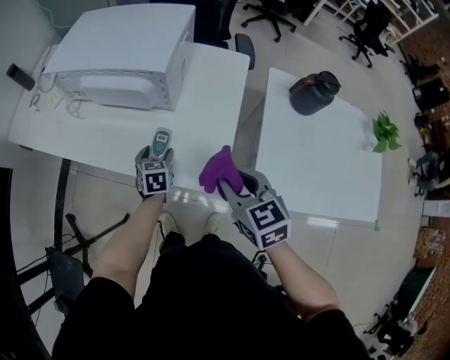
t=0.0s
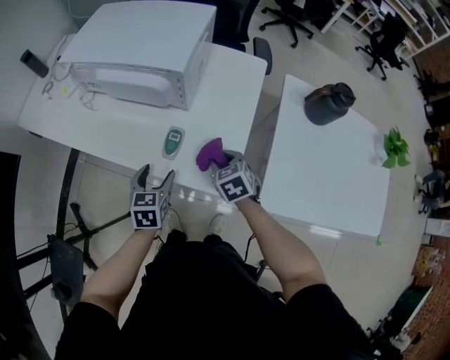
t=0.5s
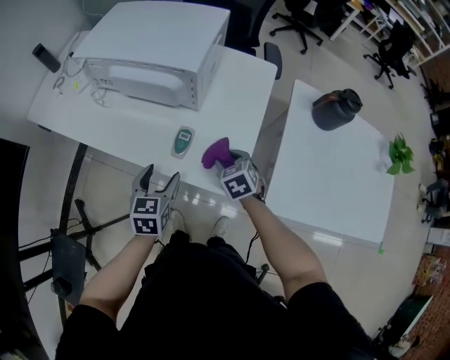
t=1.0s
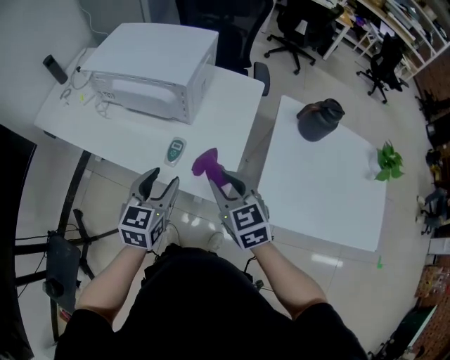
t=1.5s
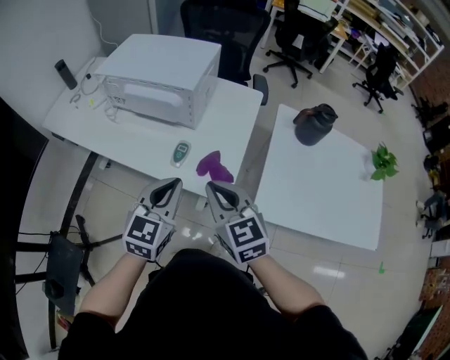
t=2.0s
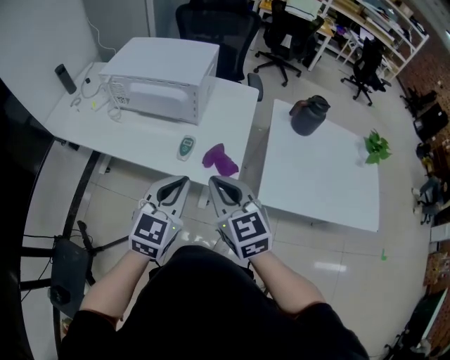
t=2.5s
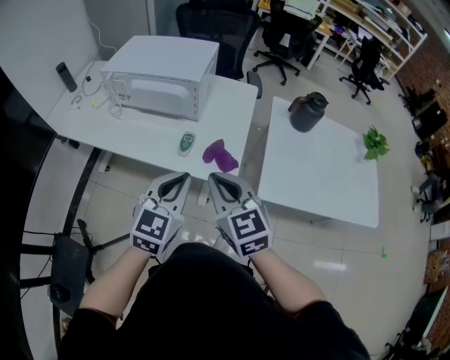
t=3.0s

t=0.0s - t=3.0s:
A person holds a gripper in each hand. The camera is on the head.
t=0.0s - t=1.5s: The left gripper heads upward and backward, covering roughly 25 cm, and swivels roughly 20 degrees. The right gripper reaches some 15 cm downward, then returns.
t=1.5s - t=3.0s: The left gripper heads backward and upward, covering about 15 cm, turns by some 20 degrees, and closes up, while the right gripper shifts some 15 cm backward, upward and to the left, and closes its fingers.

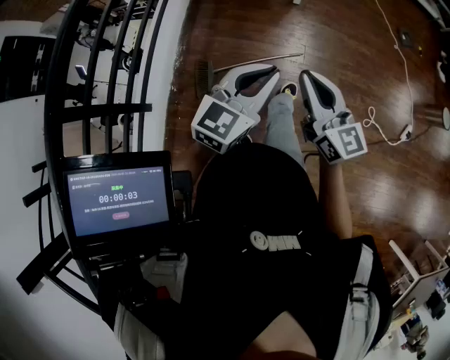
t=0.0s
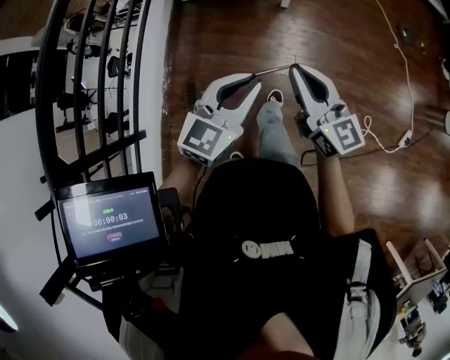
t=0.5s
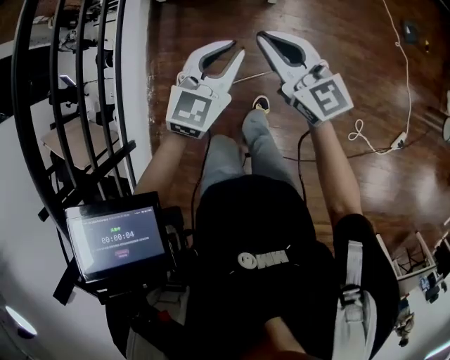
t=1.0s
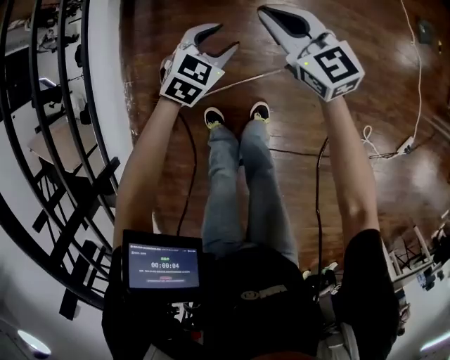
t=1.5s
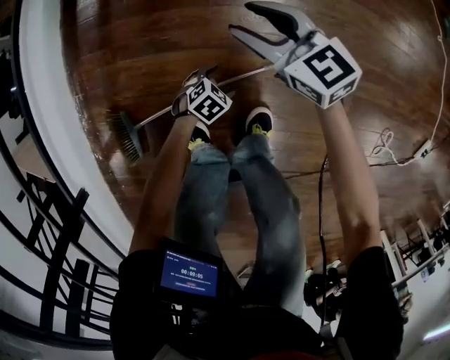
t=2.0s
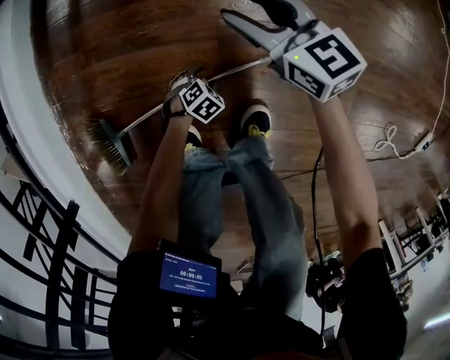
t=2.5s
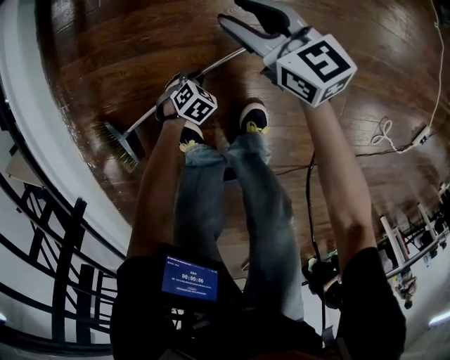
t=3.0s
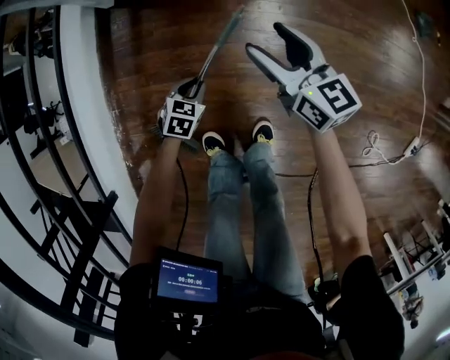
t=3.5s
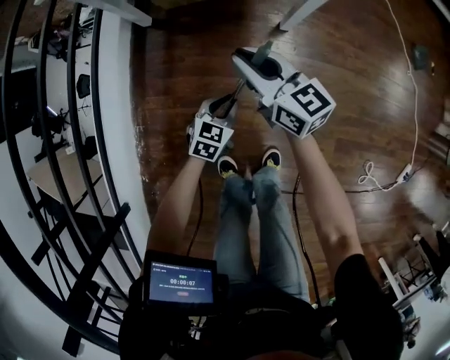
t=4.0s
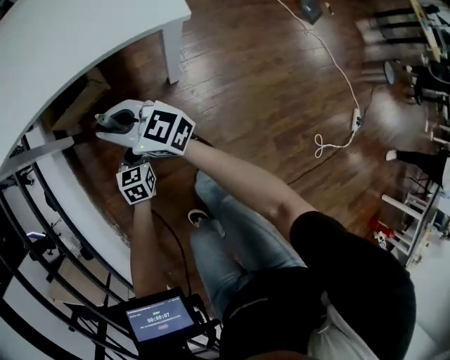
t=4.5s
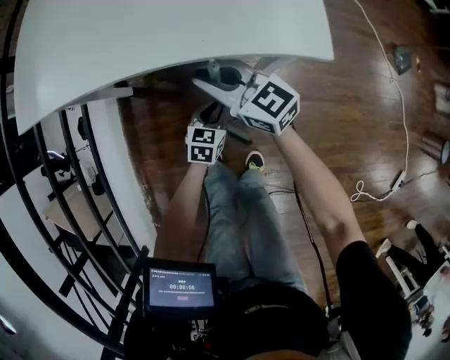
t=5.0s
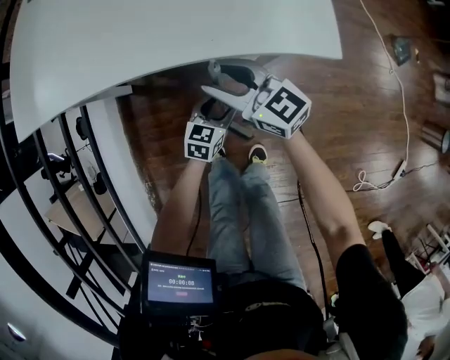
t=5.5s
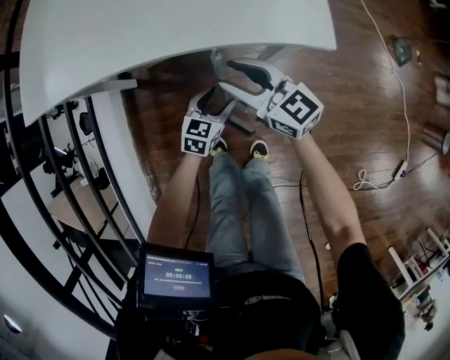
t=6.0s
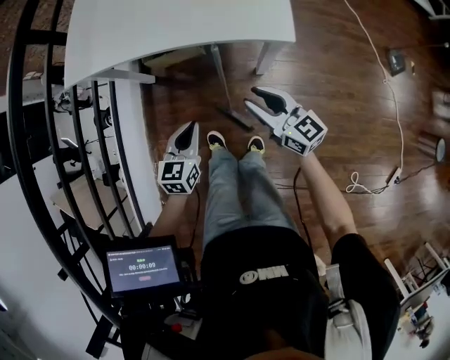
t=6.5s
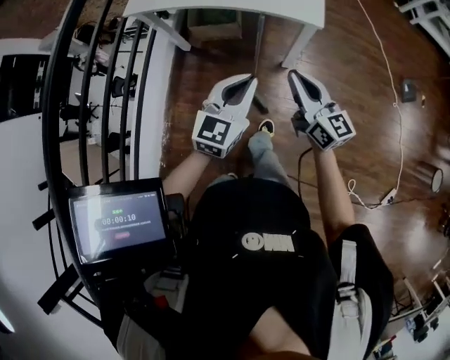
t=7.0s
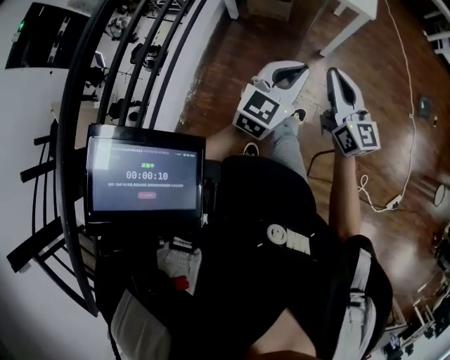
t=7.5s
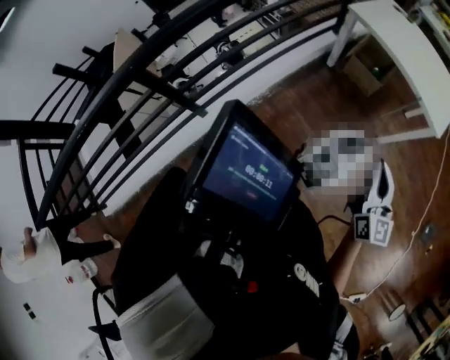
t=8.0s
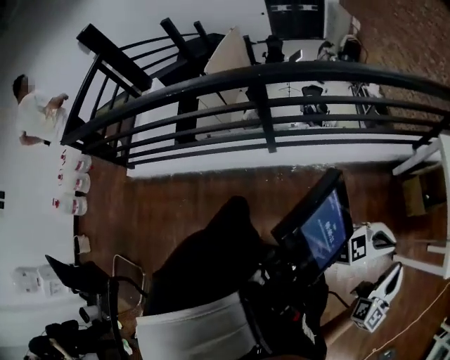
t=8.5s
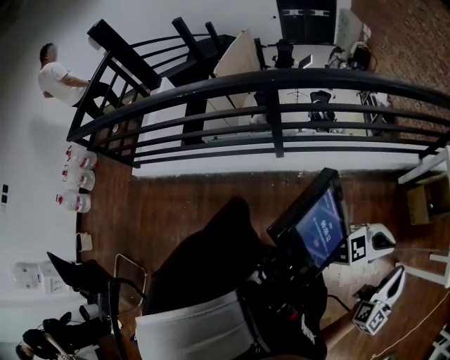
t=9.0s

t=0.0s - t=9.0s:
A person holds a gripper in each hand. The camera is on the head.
t=0.0s - t=2.0s: Both grippers move downward, approximately 70 cm. The right gripper turns by some 30 degrees, and opens its fingers; the left gripper tilts its fingers some 50 degrees downward, and opens up.
t=2.0s - t=4.5s: Both grippers travel together upward, approximately 35 cm. The left gripper rotates roughly 40 degrees, and closes up; the right gripper closes its fingers.
t=4.5s - t=7.0s: The right gripper is displaced upward, backward and to the right by roughly 30 cm, and opens, then closes once more. Meanwhile the left gripper moves upward, roughly 40 cm, rotates about 30 degrees, and opens, then closes again.
t=7.0s - t=9.0s: The grippers both shift to the left and backward by about 30 cm.

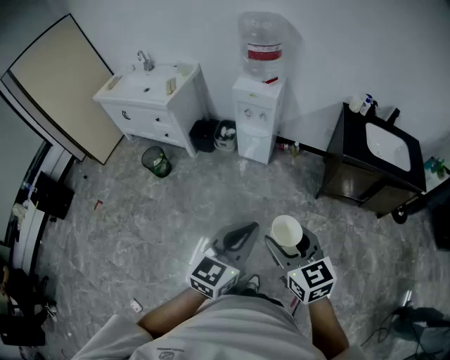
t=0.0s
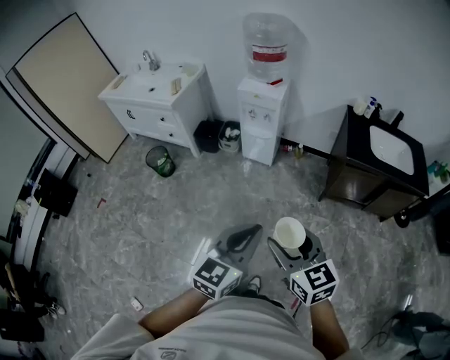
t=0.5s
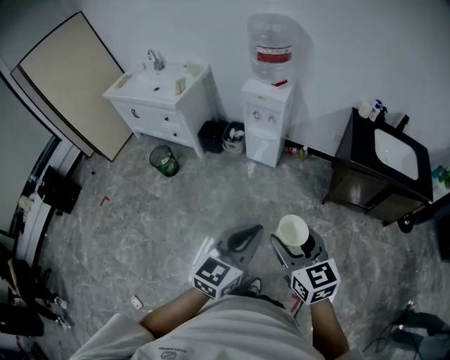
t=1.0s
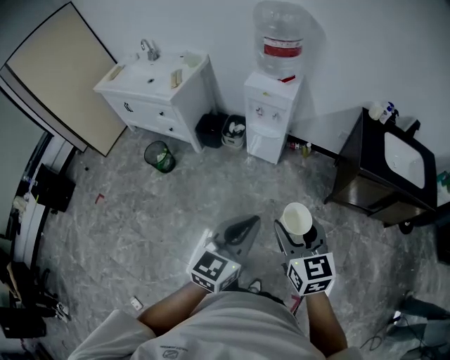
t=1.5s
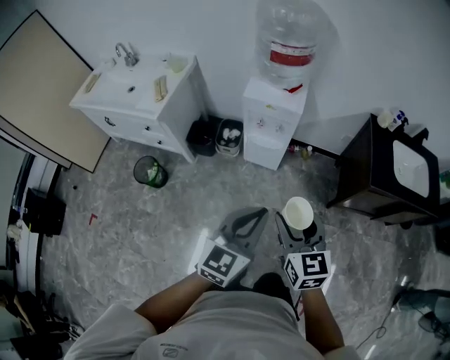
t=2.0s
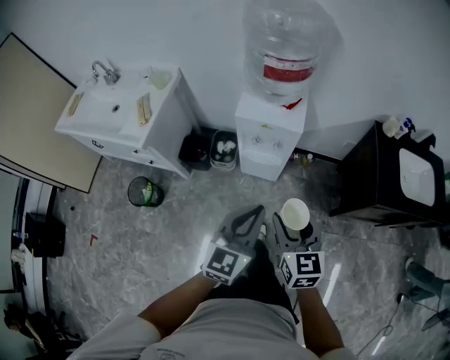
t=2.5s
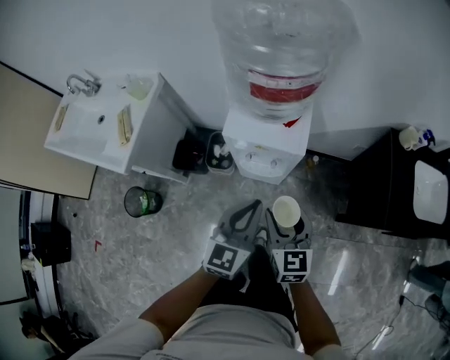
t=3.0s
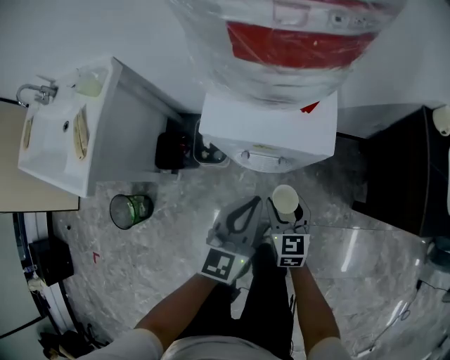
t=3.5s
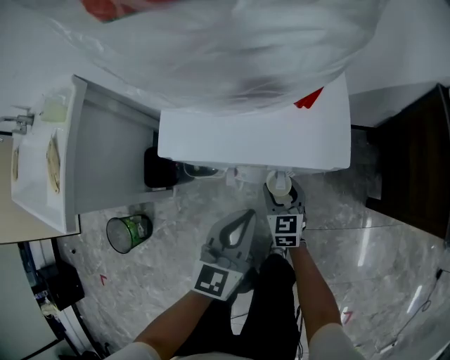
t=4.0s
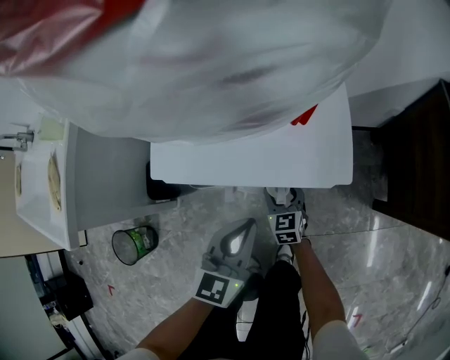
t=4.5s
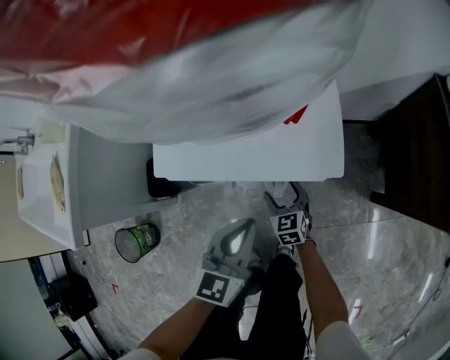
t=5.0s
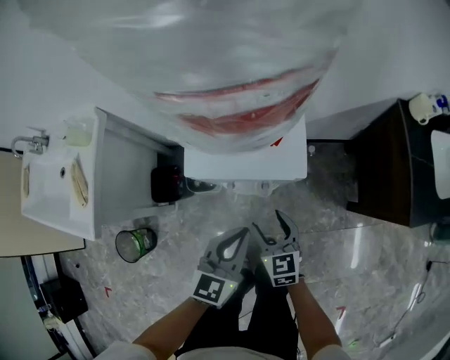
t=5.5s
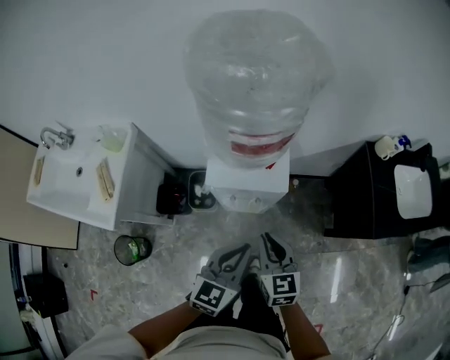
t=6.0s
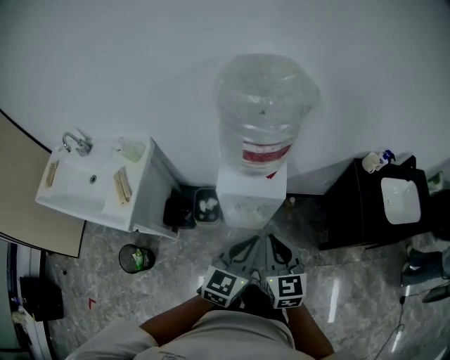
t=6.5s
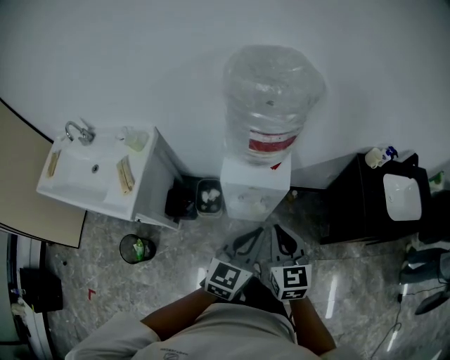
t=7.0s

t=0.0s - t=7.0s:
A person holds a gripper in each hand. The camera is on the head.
t=0.0s - t=2.0s: Both grippers travel together forward, about 30 cm.
t=2.0s - t=3.5s: The right gripper heads downward and forward, covering about 50 cm. Meanwhile the left gripper heads forward and downward, covering about 50 cm.
t=3.5s - t=5.0s: The left gripper goes about 10 cm downward. The right gripper heads downward and forward, covering roughly 20 cm.
t=5.0s - t=7.0s: The right gripper heads upward, covering some 60 cm, and closes; the left gripper travels upward by some 35 cm.

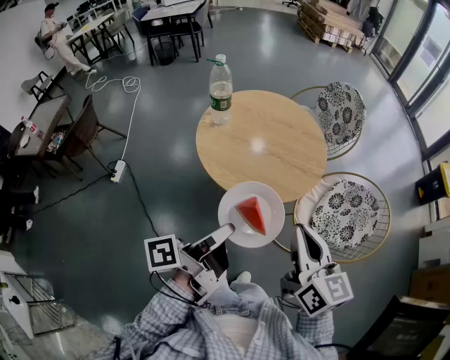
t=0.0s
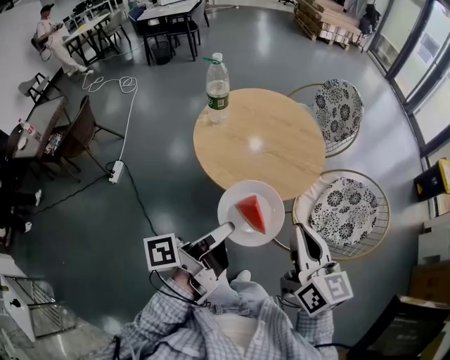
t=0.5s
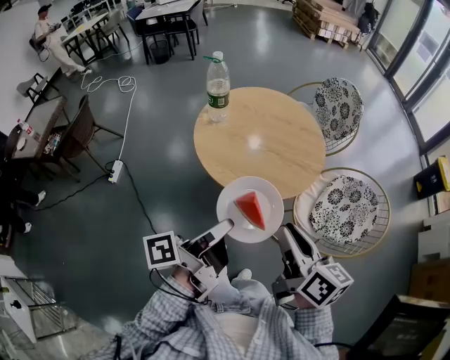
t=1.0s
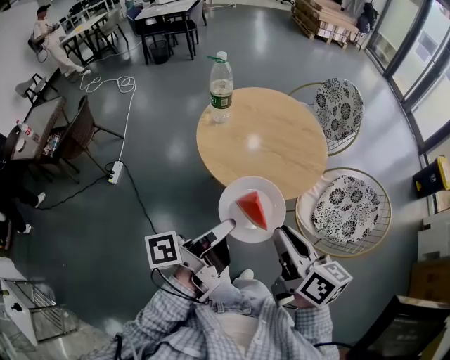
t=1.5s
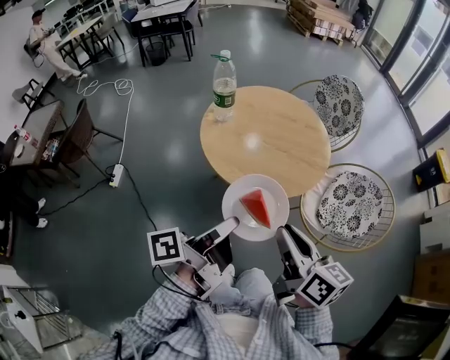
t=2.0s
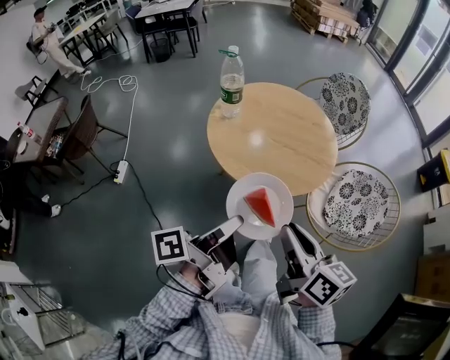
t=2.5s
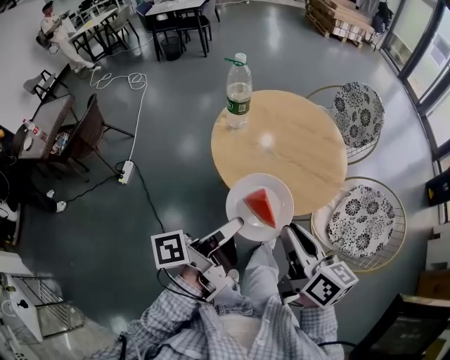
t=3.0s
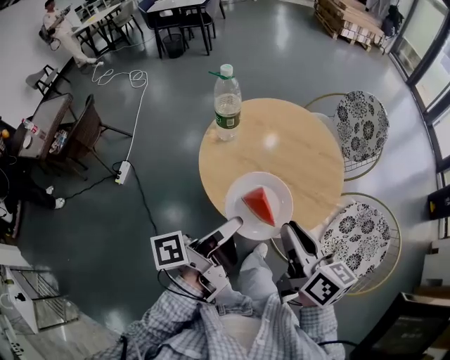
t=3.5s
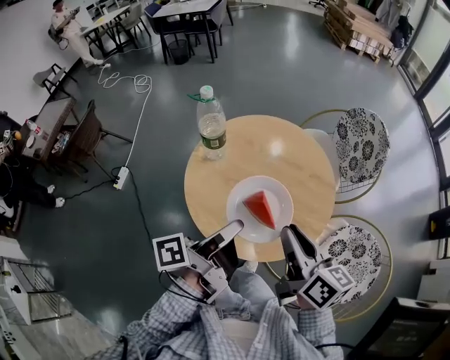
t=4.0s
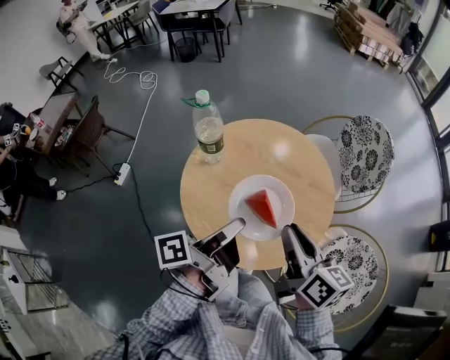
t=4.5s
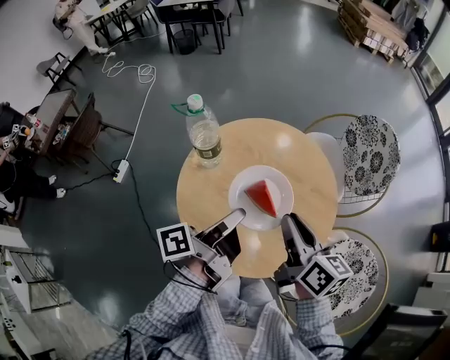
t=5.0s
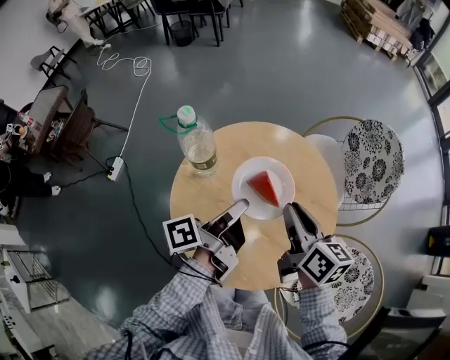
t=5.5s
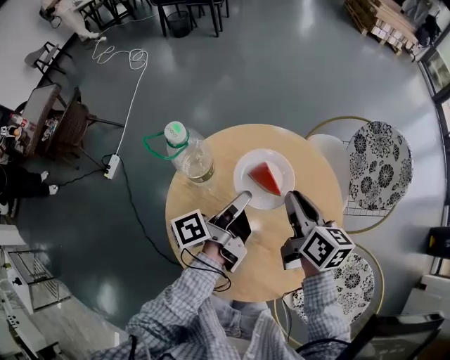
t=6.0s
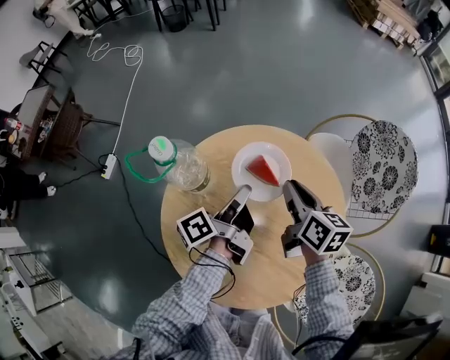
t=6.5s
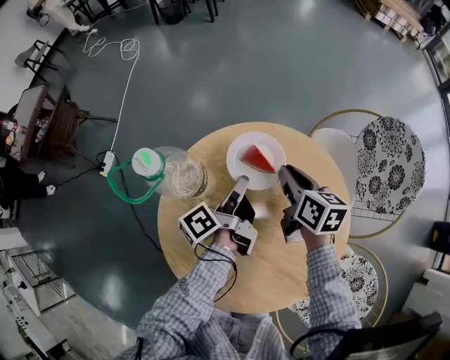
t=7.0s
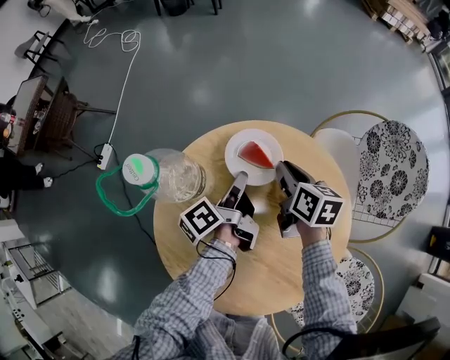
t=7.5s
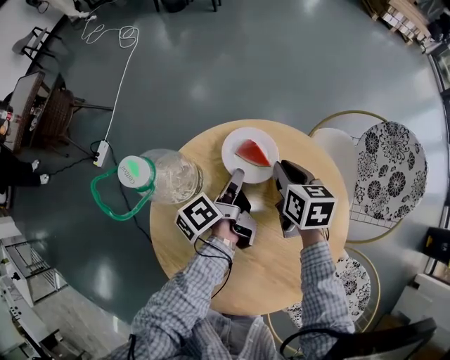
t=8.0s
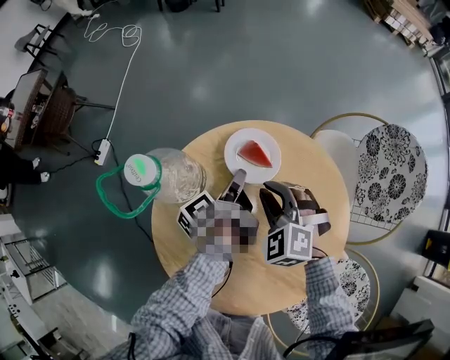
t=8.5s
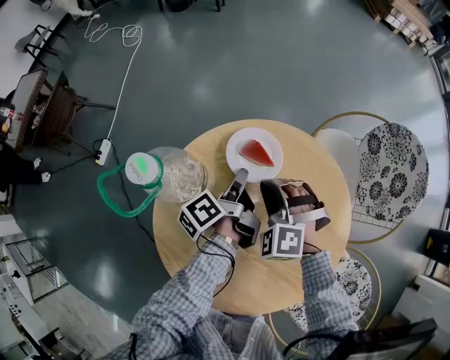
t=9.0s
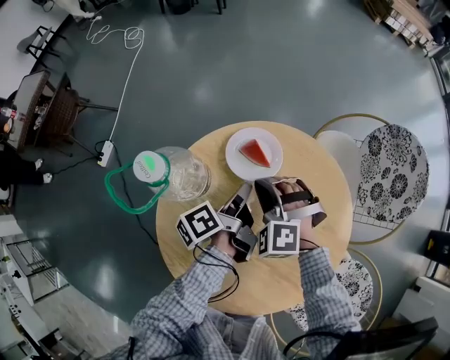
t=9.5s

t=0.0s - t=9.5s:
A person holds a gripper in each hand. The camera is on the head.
t=0.0s - t=2.0s: The right gripper ends up about 10 cm from where it was, and turns by about 20 degrees.
t=2.0s - t=4.0s: The right gripper ends up approximately 25 cm from where it was.
t=4.0s - t=5.5s: The right gripper moves some 20 cm.
t=5.5s - t=7.5s: The right gripper moves approximately 25 cm.
t=7.5s - t=9.5s: The right gripper moves about 10 cm, and rolls counterclockwise, seen from behind, by approximately 100 degrees.
